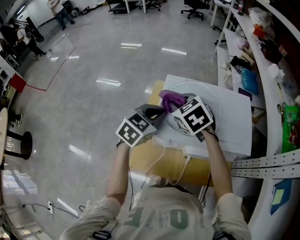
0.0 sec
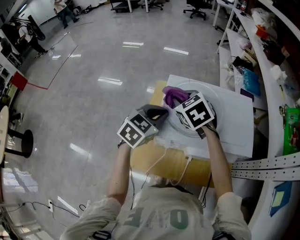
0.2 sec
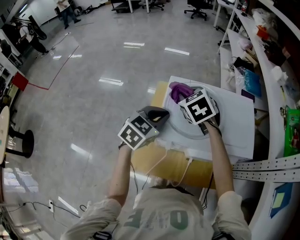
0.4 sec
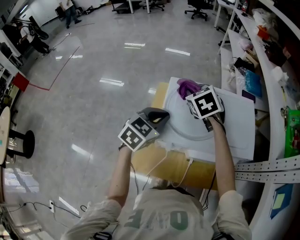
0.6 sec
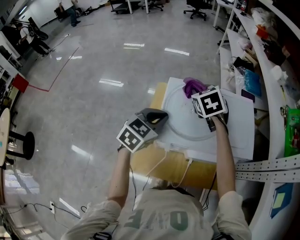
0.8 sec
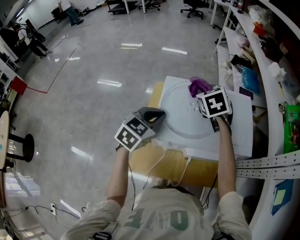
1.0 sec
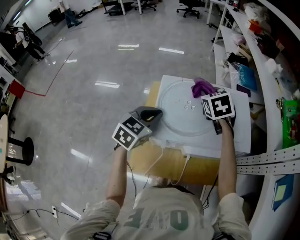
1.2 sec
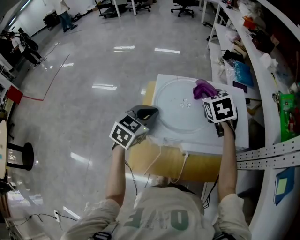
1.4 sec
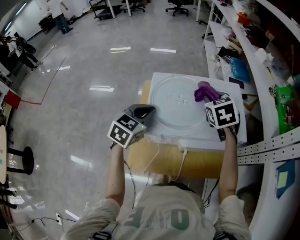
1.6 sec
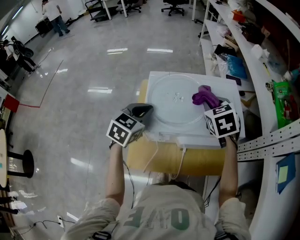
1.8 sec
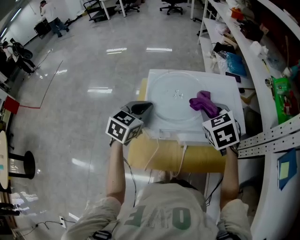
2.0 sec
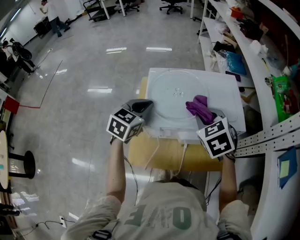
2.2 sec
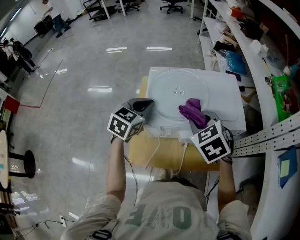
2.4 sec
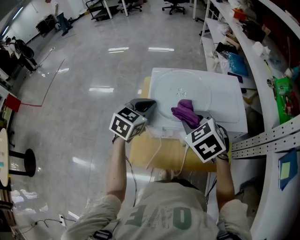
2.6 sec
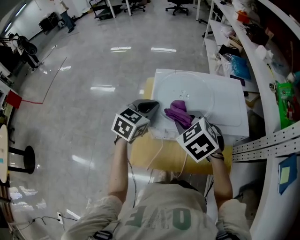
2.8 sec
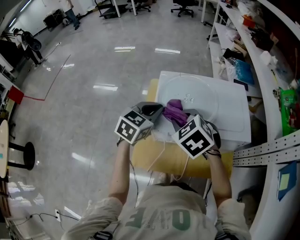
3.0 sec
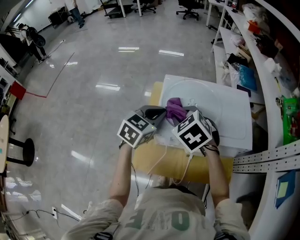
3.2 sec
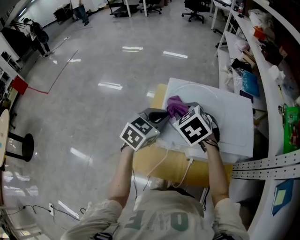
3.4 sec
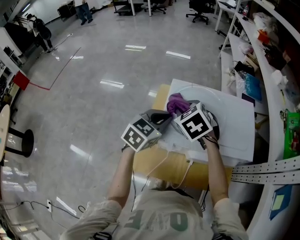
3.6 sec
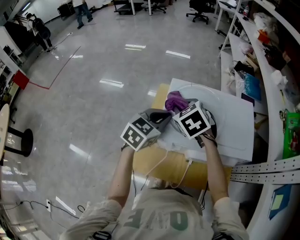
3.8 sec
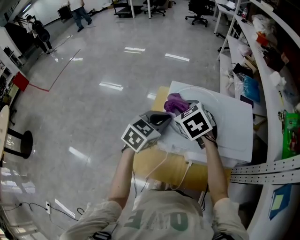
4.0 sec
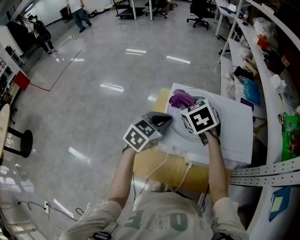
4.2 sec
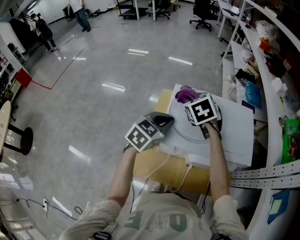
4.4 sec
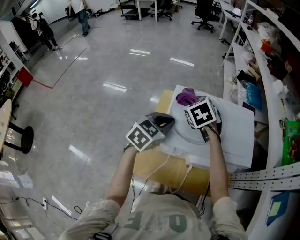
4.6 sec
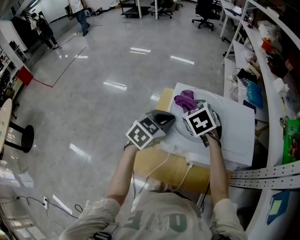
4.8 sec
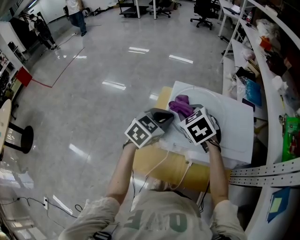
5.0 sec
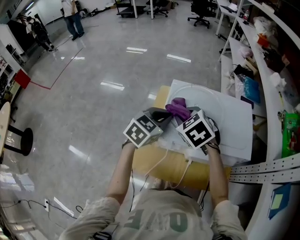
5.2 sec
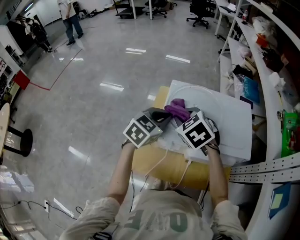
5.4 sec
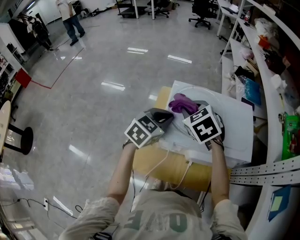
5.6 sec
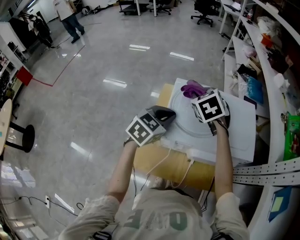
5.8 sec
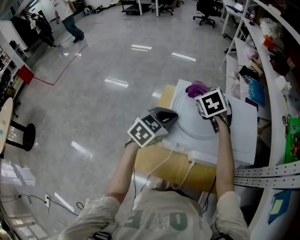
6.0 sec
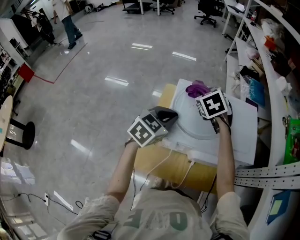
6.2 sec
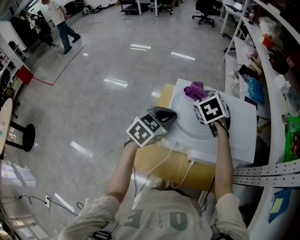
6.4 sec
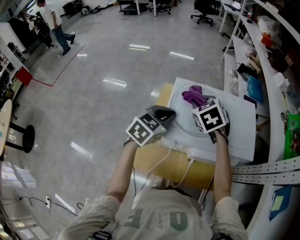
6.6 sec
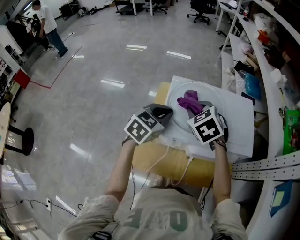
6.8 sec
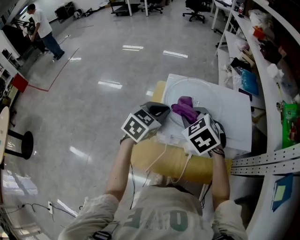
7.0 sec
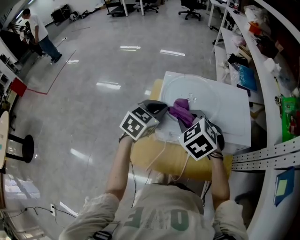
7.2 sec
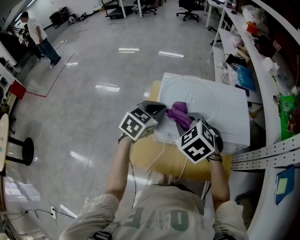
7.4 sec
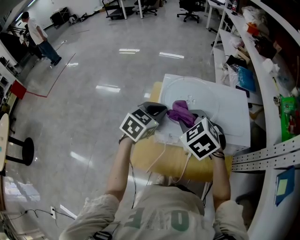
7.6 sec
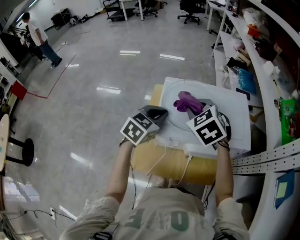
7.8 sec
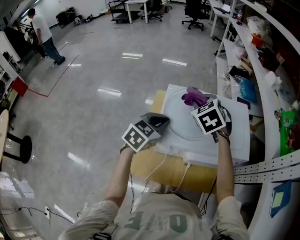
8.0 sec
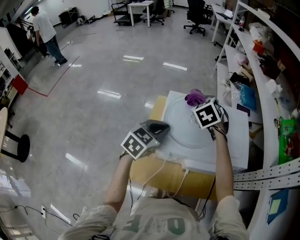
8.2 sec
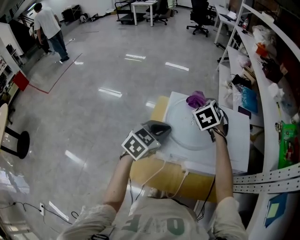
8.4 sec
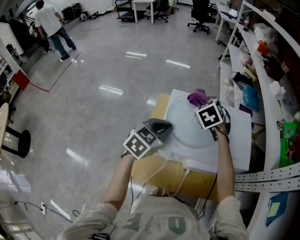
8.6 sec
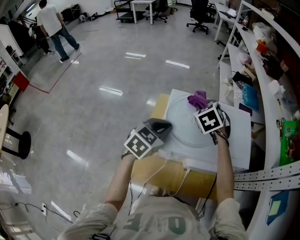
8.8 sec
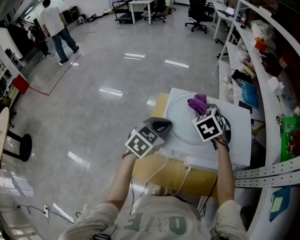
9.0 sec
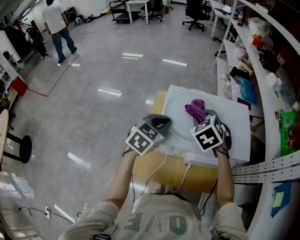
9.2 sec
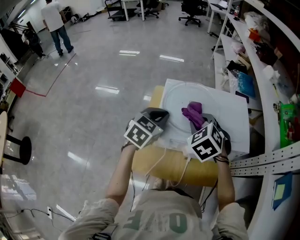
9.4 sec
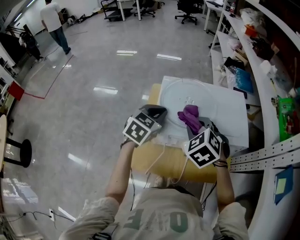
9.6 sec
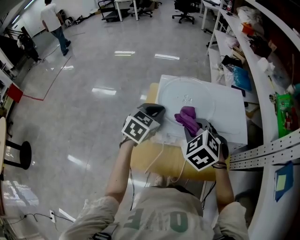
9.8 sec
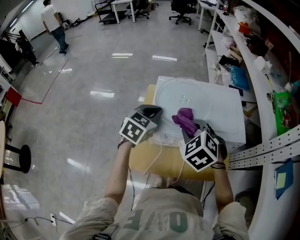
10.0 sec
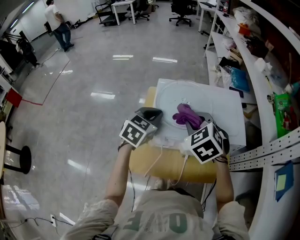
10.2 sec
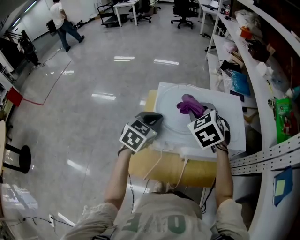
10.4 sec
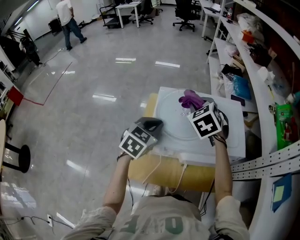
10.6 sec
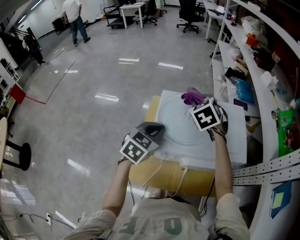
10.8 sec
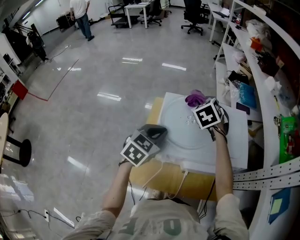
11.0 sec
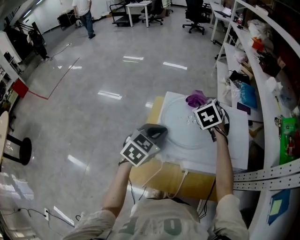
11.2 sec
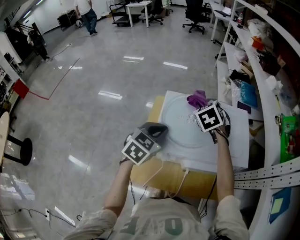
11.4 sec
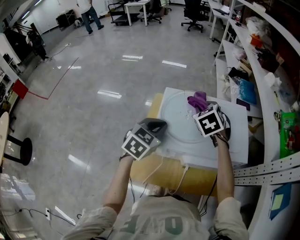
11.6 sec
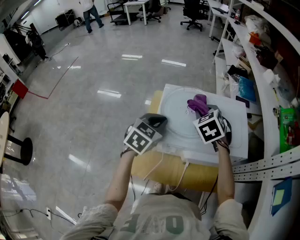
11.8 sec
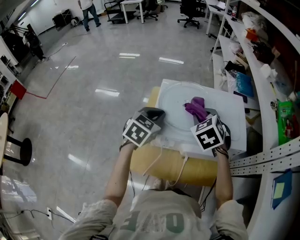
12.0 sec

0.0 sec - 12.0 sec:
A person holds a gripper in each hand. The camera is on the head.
0.0 sec - 1.6 sec: The right gripper travels to the right by approximately 20 cm, and swivels approximately 30 degrees.
1.6 sec - 3.0 sec: The right gripper heads to the left and backward, covering approximately 20 cm, and turns by some 30 degrees.
3.0 sec - 4.4 sec: The right gripper heads forward, covering approximately 15 cm.
4.4 sec - 6.0 sec: The right gripper travels backward and back again, roughly 10 cm each way.
6.0 sec - 7.6 sec: The right gripper is displaced backward by approximately 15 cm.
7.6 sec - 9.0 sec: The right gripper travels forward by approximately 15 cm.
9.0 sec - 10.4 sec: The right gripper moves backward, about 5 cm.
10.4 sec - 12.0 sec: The right gripper goes forward and returns, approximately 10 cm each way.

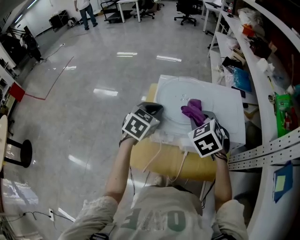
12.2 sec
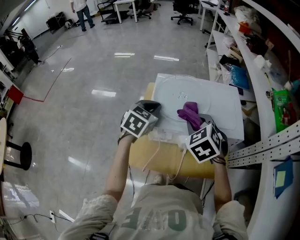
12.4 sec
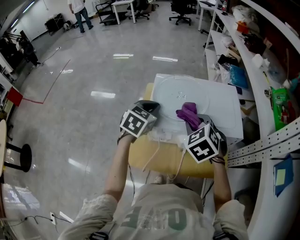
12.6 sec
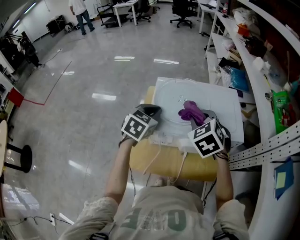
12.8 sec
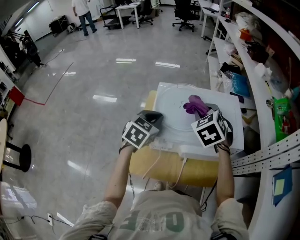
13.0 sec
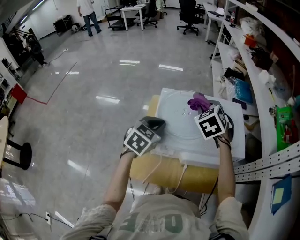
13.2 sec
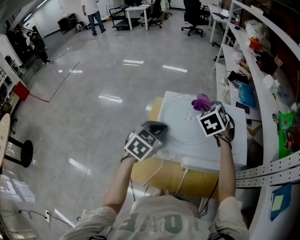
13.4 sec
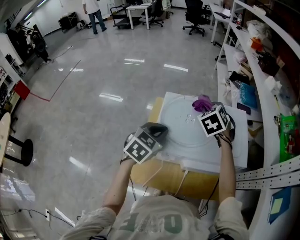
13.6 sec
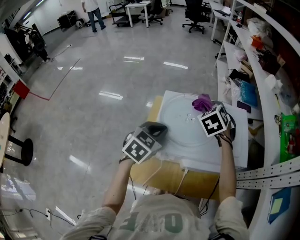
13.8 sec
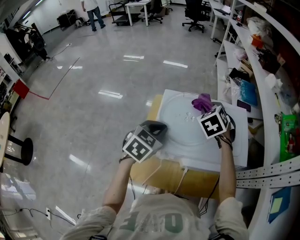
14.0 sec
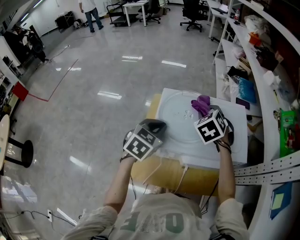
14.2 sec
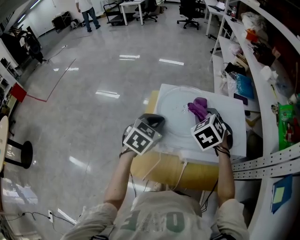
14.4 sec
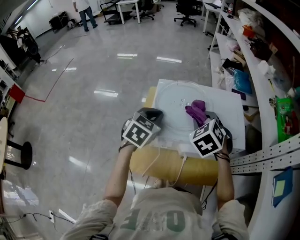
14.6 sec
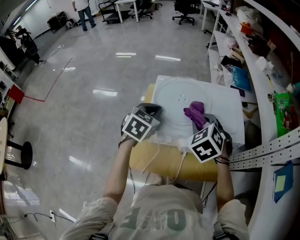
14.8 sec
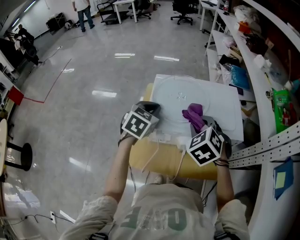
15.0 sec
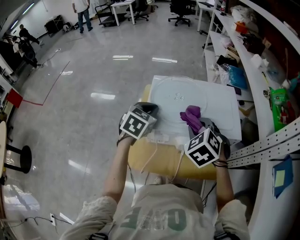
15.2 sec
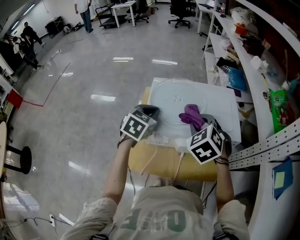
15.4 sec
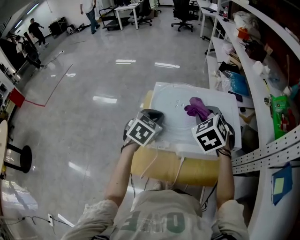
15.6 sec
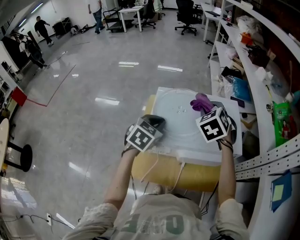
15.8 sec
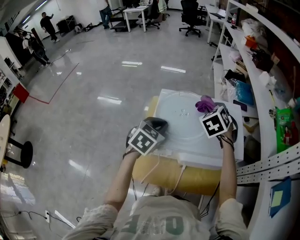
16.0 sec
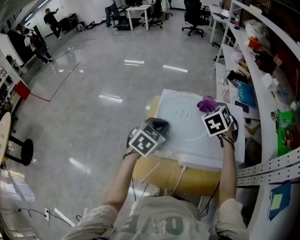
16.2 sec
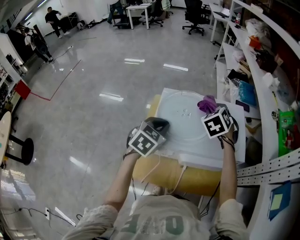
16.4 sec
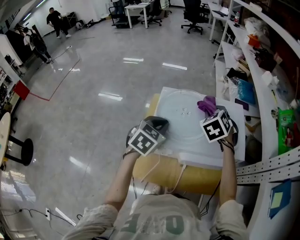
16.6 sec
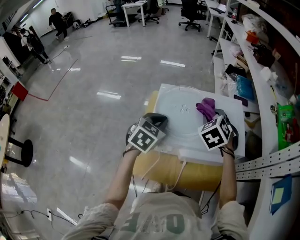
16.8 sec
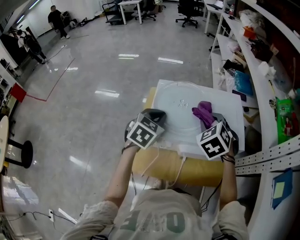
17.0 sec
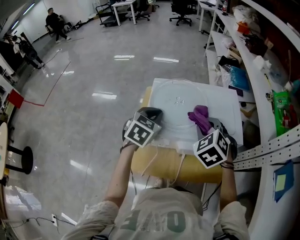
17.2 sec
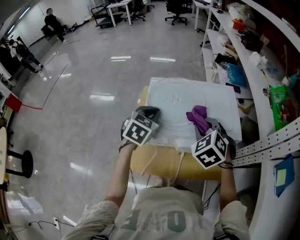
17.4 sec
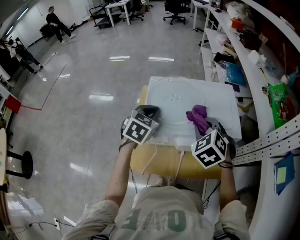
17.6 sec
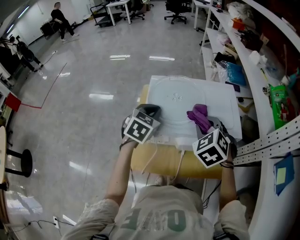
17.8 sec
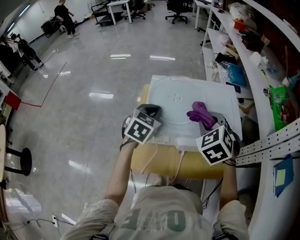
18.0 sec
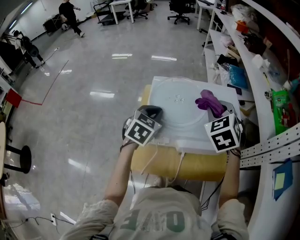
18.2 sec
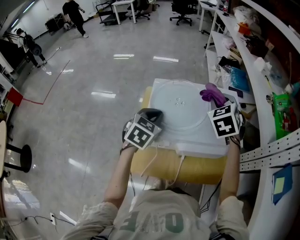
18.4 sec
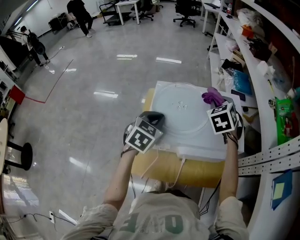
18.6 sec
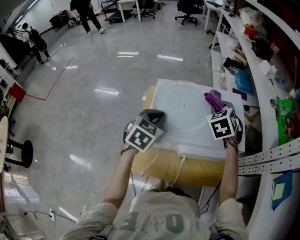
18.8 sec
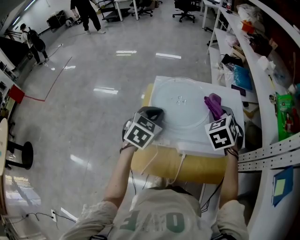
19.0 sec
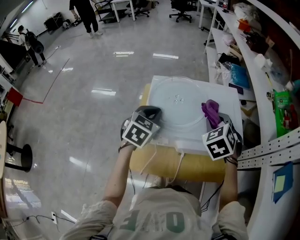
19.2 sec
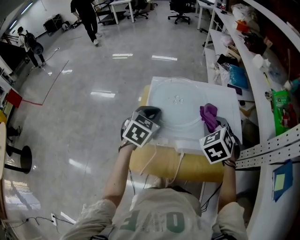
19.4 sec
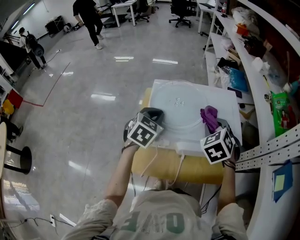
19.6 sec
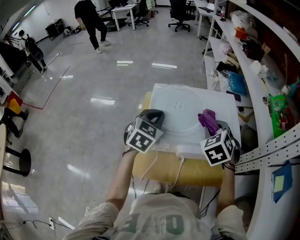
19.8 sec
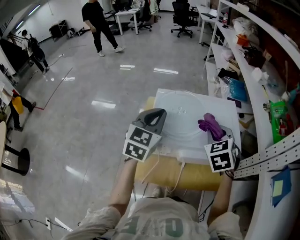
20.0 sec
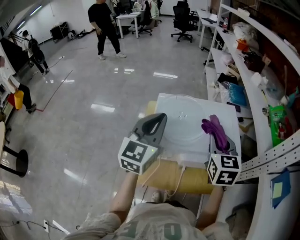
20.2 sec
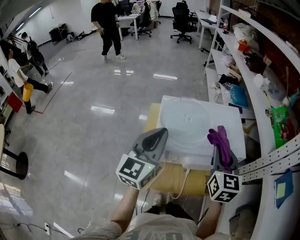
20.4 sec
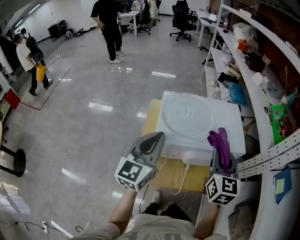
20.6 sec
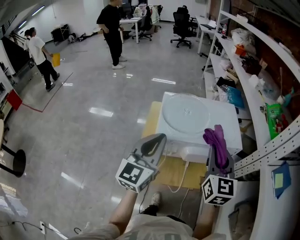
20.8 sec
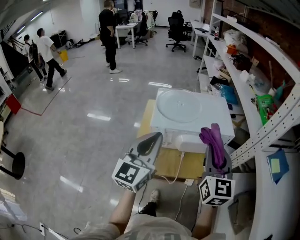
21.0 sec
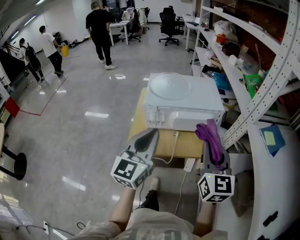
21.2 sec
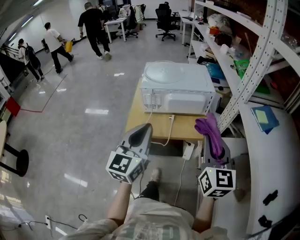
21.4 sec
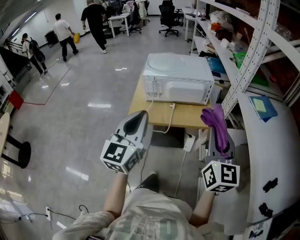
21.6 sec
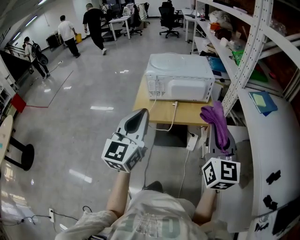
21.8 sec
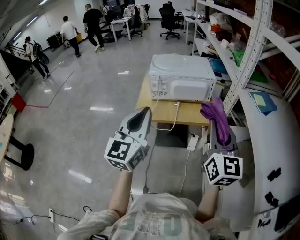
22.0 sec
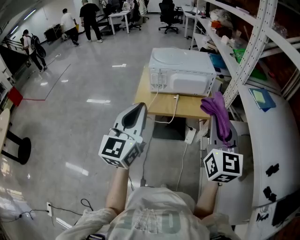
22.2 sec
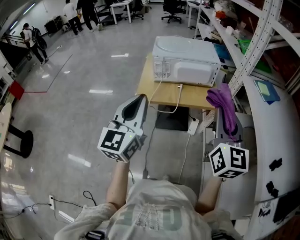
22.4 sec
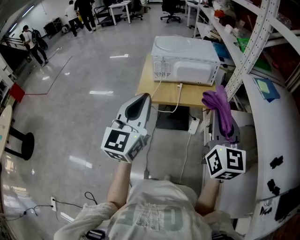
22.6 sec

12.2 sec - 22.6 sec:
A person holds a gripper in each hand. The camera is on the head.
12.2 sec - 13.6 sec: The right gripper moves forward, approximately 15 cm.
13.6 sec - 15.2 sec: The right gripper is displaced backward by some 20 cm.
15.2 sec - 16.6 sec: The right gripper travels forward by approximately 15 cm.
16.6 sec - 18.2 sec: The right gripper goes approximately 10 cm backward and upward.
18.2 sec - 19.6 sec: The right gripper goes about 5 cm downward, and moves approximately 10 cm forward and comes back.
19.6 sec - 21.2 sec: Both grippers travel together backward, approximately 30 cm. The left gripper angles its fingers upward, by some 40 degrees. Meanwhile the right gripper tilts its fingers about 40 degrees upward.
21.2 sec - 22.6 sec: The grippers both shift backward by some 20 cm.

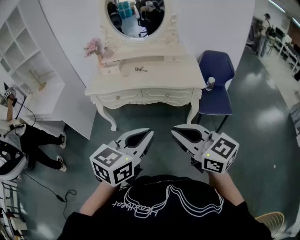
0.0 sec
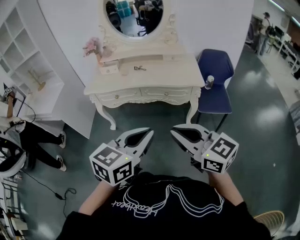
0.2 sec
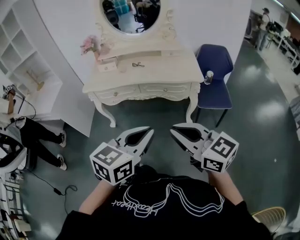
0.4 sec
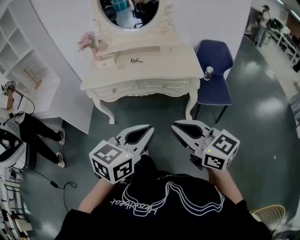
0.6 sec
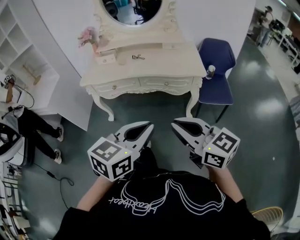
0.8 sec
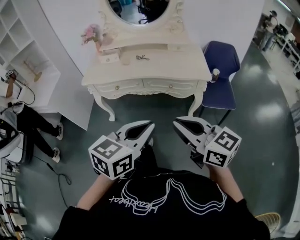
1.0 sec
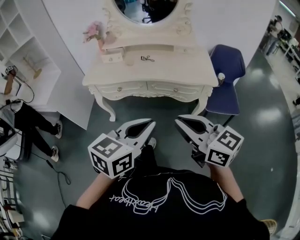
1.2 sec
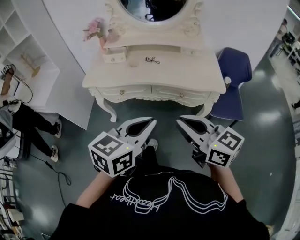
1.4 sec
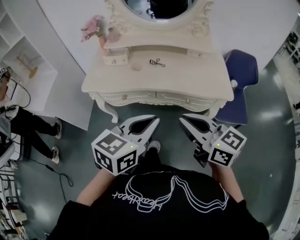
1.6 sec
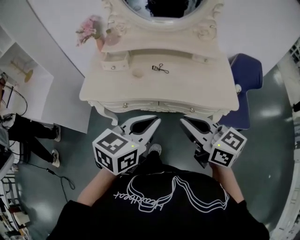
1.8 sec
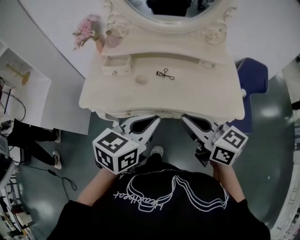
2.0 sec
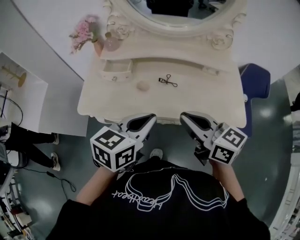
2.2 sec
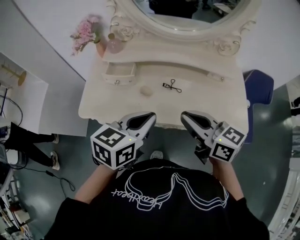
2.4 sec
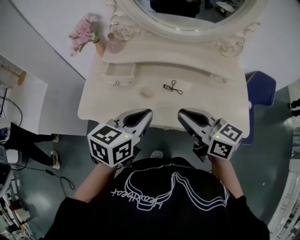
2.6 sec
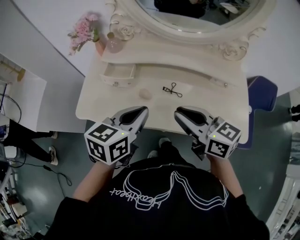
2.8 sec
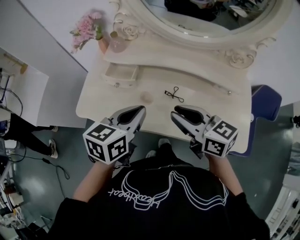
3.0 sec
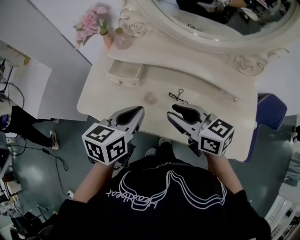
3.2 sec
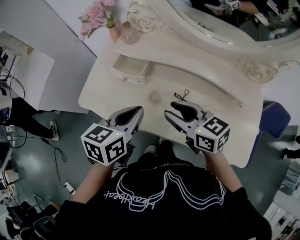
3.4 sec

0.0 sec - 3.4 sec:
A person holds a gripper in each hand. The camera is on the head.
0.0 sec - 1.6 sec: The grippers both shift forward by approximately 25 cm.
1.6 sec - 3.4 sec: The grippers both shift forward by about 35 cm. The left gripper swivels some 30 degrees; the right gripper turns by roughly 30 degrees, and opens.
